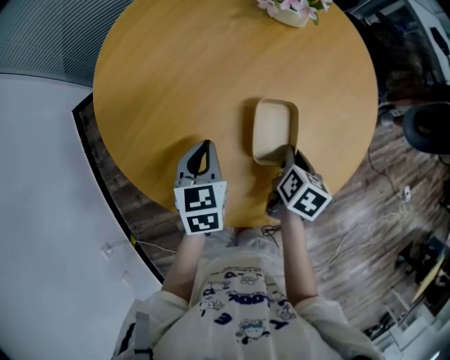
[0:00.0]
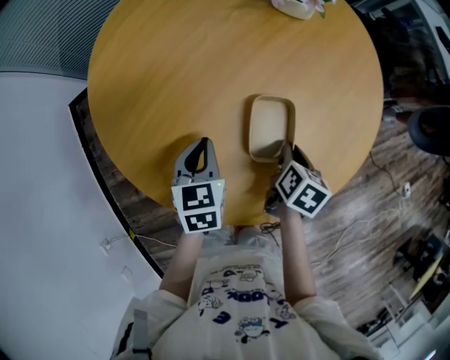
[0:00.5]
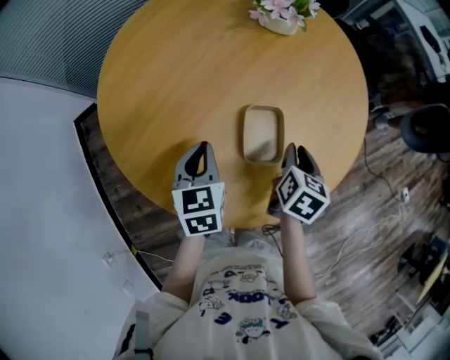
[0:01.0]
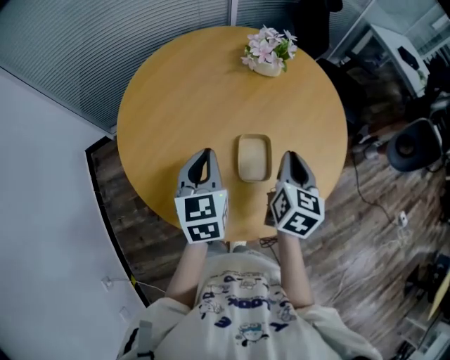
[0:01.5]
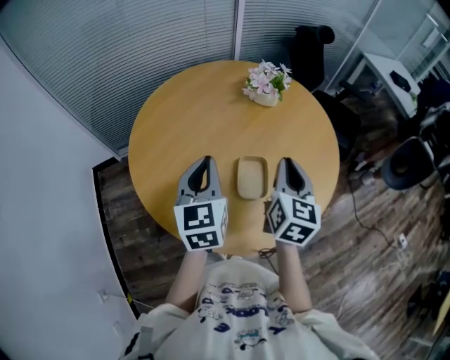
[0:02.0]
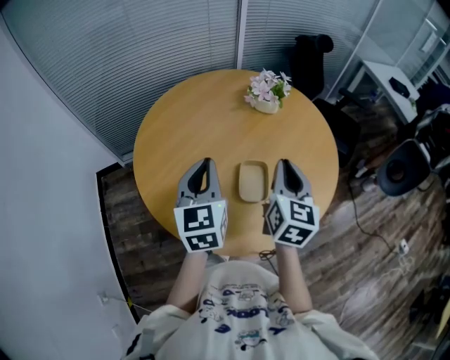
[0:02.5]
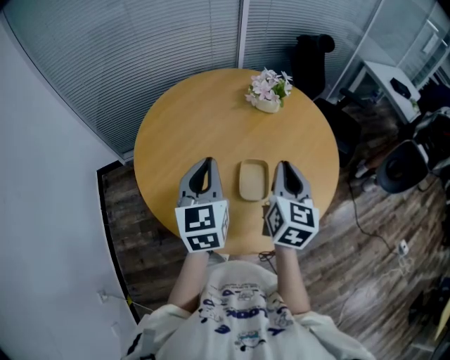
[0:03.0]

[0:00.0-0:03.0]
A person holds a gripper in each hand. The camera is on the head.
0:00.0 to 0:01.5: The grippers both shift upward by some 15 cm. The right gripper changes its angle by about 30 degrees.
0:01.5 to 0:03.0: Both grippers travel together upward, about 10 cm.

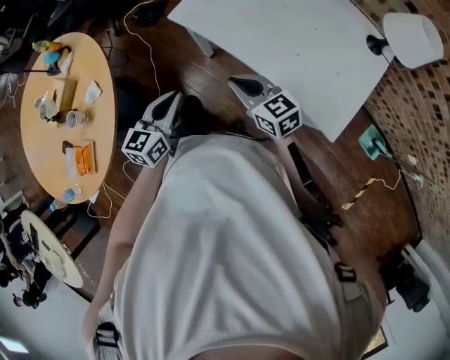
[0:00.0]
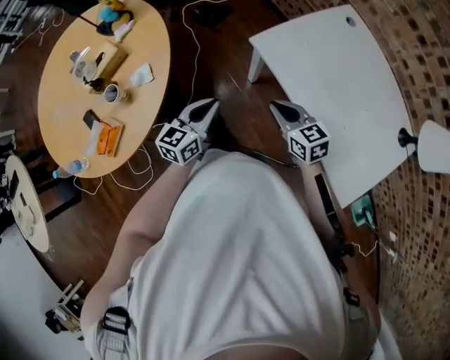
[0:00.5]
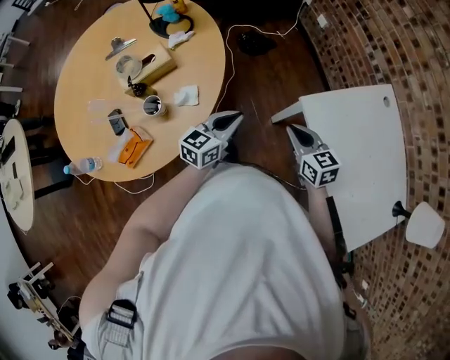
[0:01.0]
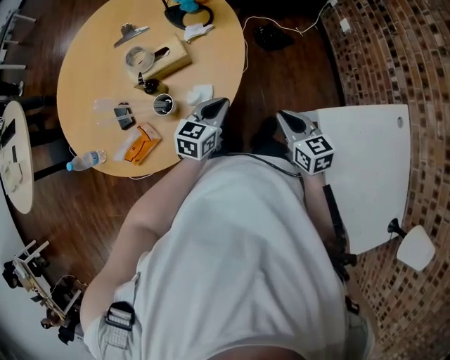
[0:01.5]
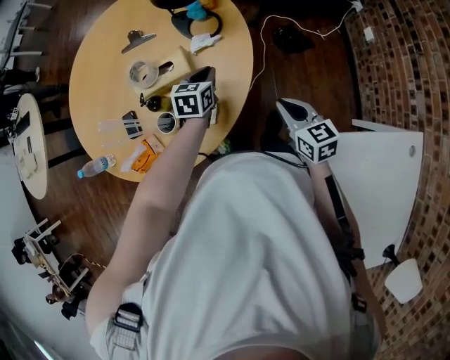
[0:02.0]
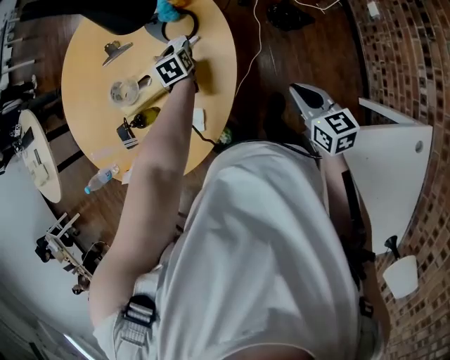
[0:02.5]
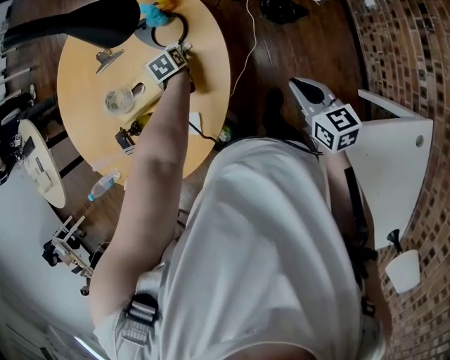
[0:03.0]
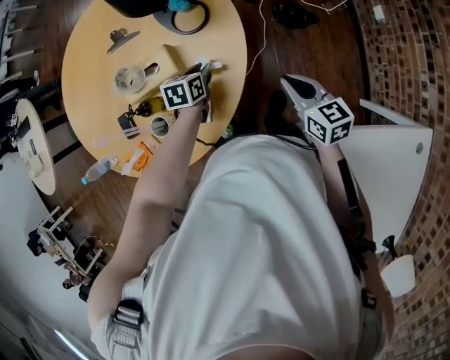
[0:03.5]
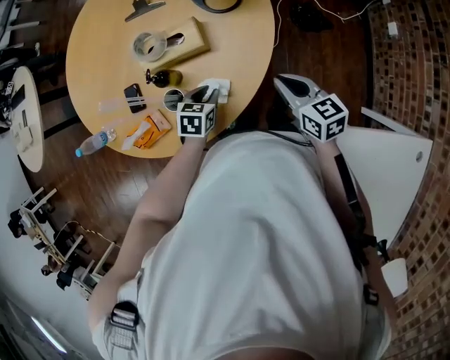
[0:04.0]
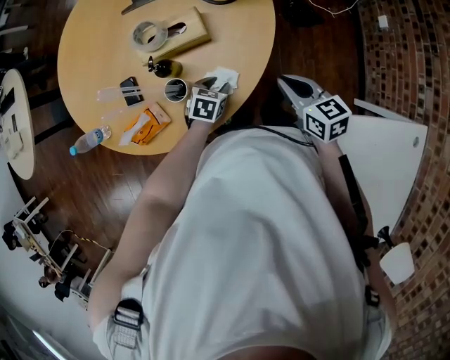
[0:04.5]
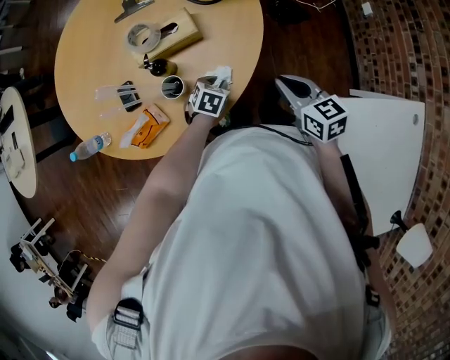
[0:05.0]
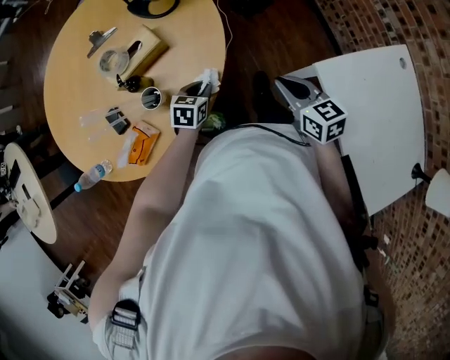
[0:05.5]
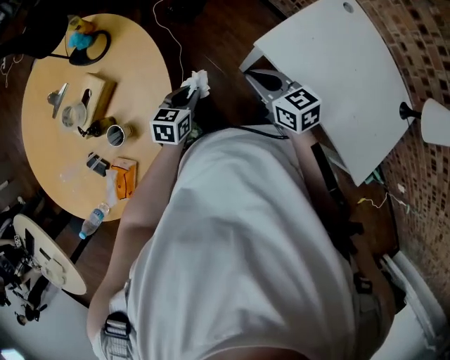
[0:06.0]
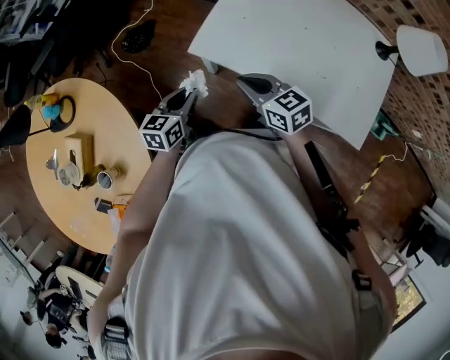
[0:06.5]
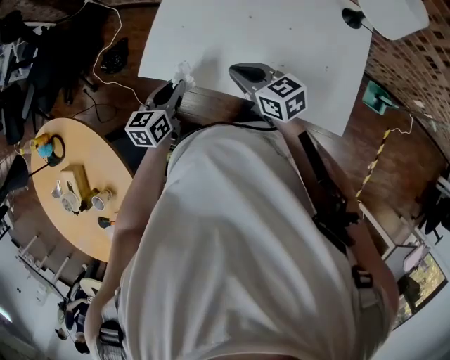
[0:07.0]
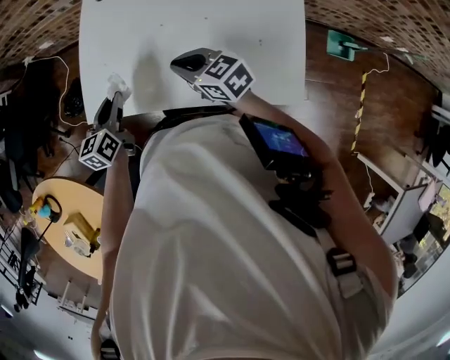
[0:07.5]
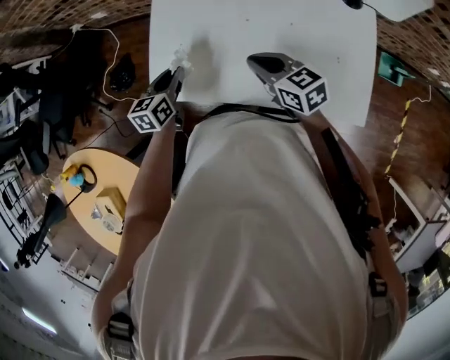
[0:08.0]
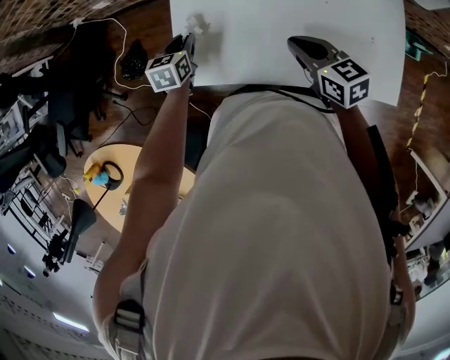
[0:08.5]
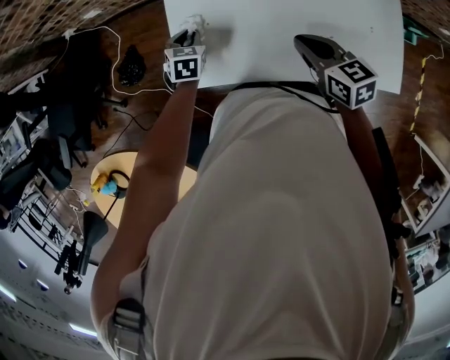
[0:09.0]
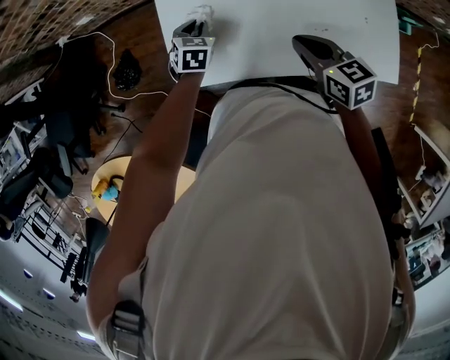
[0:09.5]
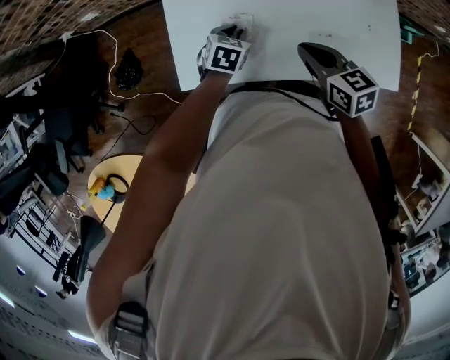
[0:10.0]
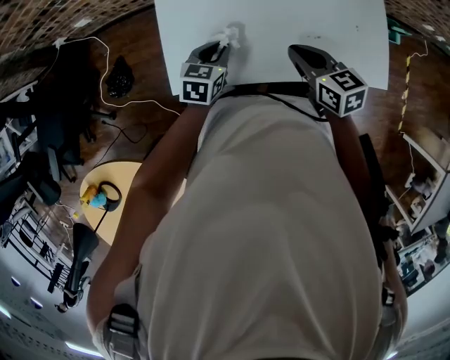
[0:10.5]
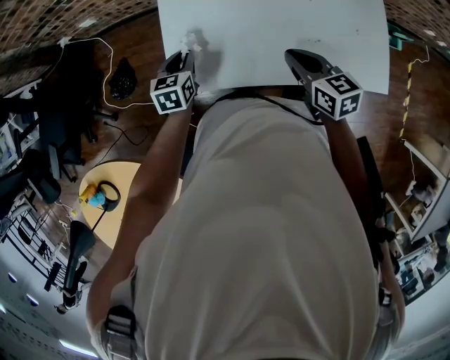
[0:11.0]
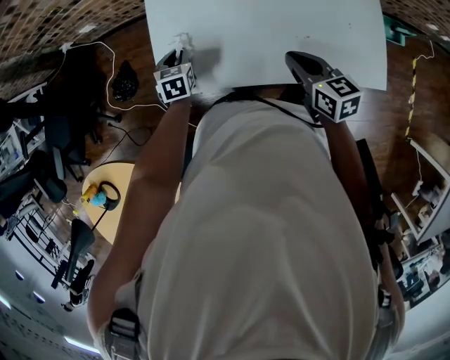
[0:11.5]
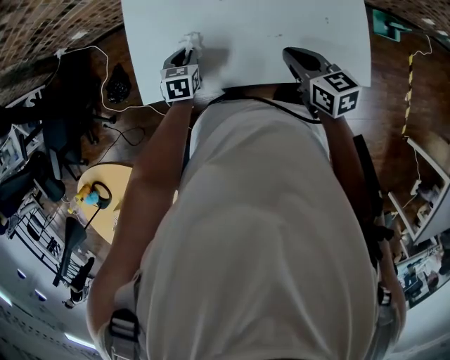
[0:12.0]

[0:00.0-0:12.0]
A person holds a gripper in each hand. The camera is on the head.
0:00.0 to 0:02.0: Both grippers are carried about 50 cm. The left gripper changes its angle by approximately 60 degrees. Meanwhile the right gripper swivels some 30 degrees.
0:02.0 to 0:04.0: The right gripper moves roughly 10 cm to the right and comes back. The left gripper travels backward, to the left and downward by approximately 15 cm, and opens, then closes once more.
0:04.0 to 0:06.0: The right gripper moves approximately 25 cm, and turns by about 40 degrees, while the left gripper reaches roughly 5 cm downward, then returns, and changes its angle by approximately 50 degrees.
0:06.0 to 0:08.0: The right gripper ends up approximately 40 cm from where it was, and swivels some 40 degrees, while the left gripper shifts by about 40 cm, and rotates some 30 degrees.
0:08.0 to 0:10.0: The left gripper moves downward and to the right, about 10 cm, and swivels approximately 40 degrees, while the right gripper rotates about 20 degrees.
0:10.0 to 0:12.0: The left gripper moves roughly 15 cm to the left and comes back, while the right gripper goes some 10 cm to the right.

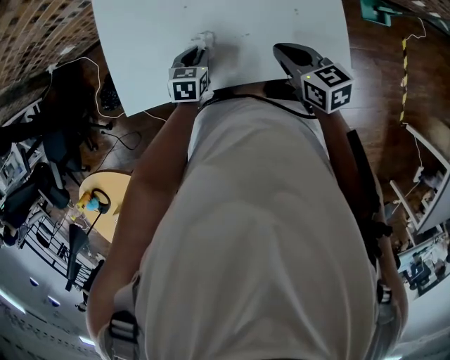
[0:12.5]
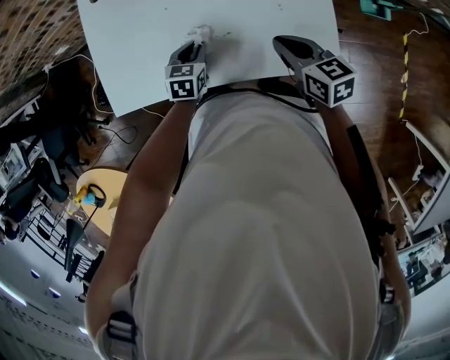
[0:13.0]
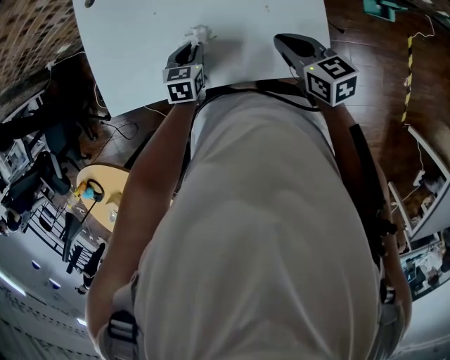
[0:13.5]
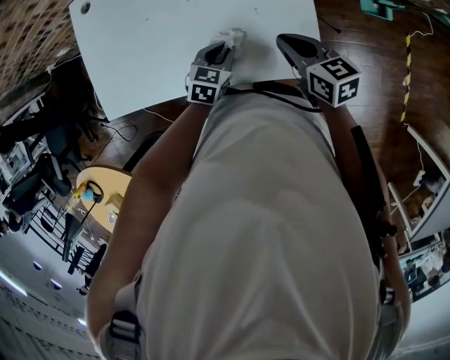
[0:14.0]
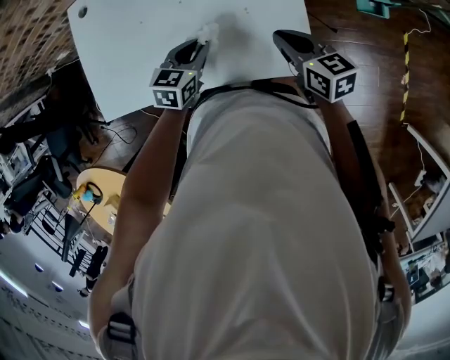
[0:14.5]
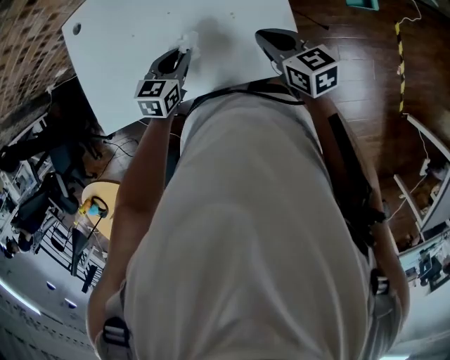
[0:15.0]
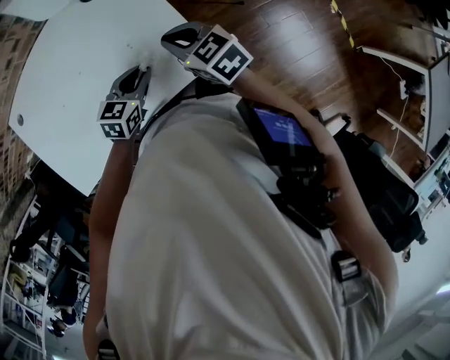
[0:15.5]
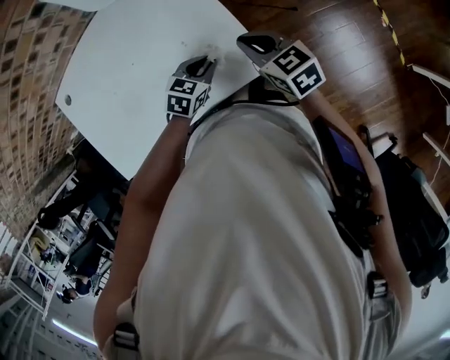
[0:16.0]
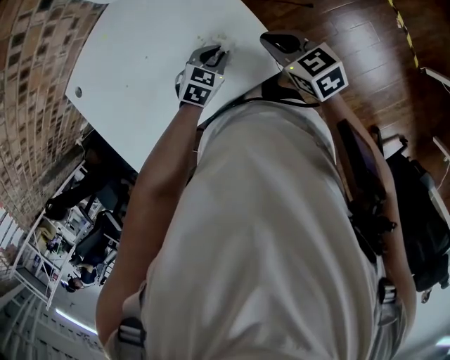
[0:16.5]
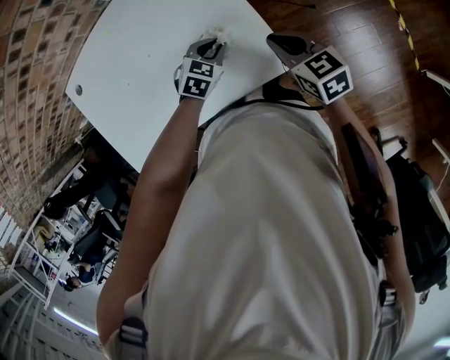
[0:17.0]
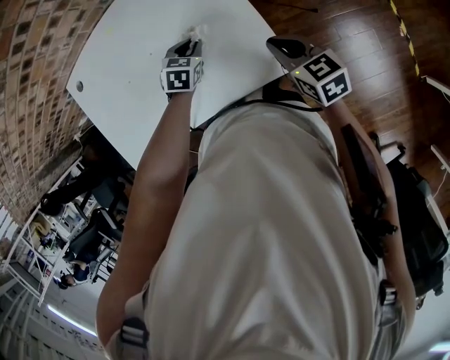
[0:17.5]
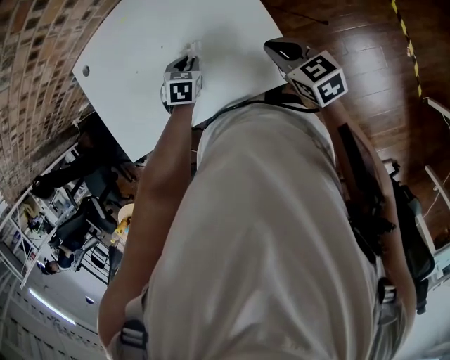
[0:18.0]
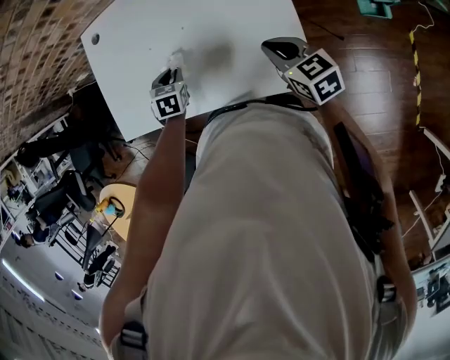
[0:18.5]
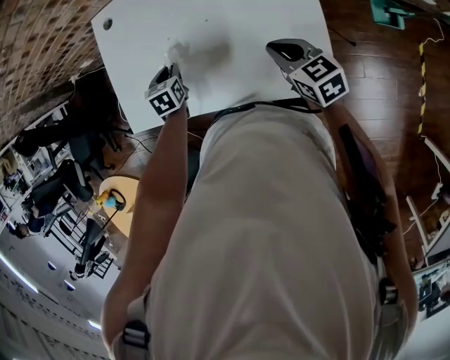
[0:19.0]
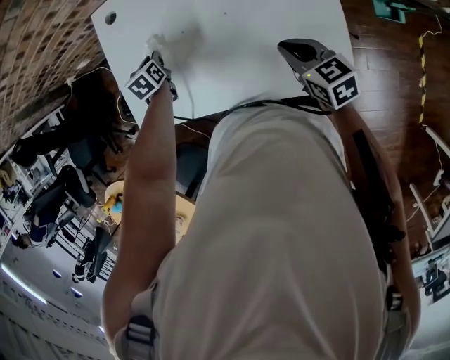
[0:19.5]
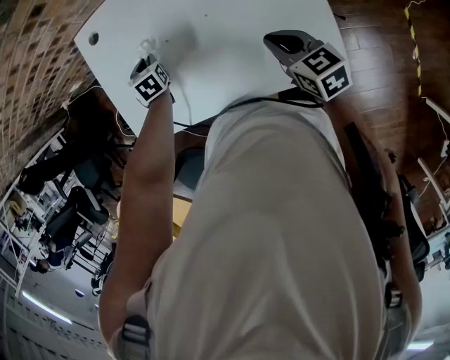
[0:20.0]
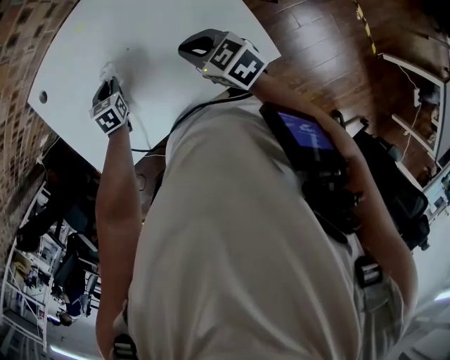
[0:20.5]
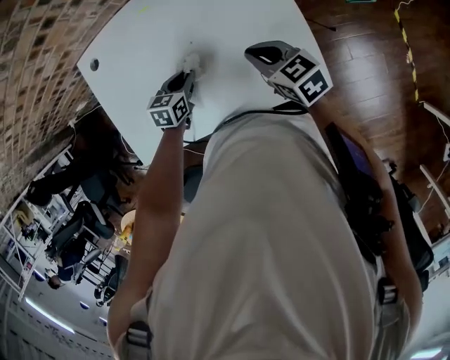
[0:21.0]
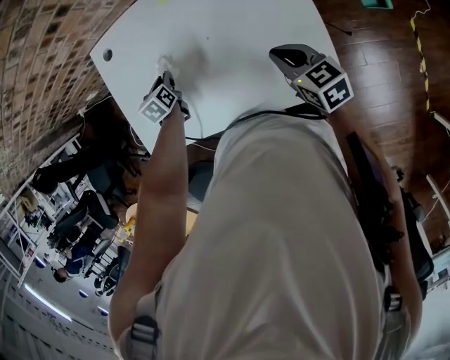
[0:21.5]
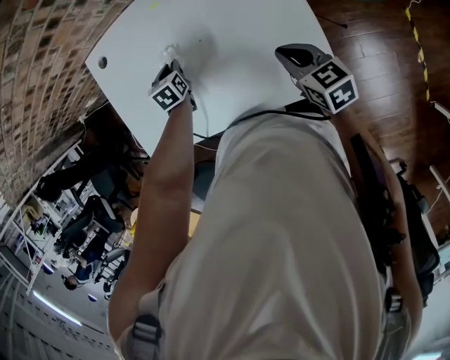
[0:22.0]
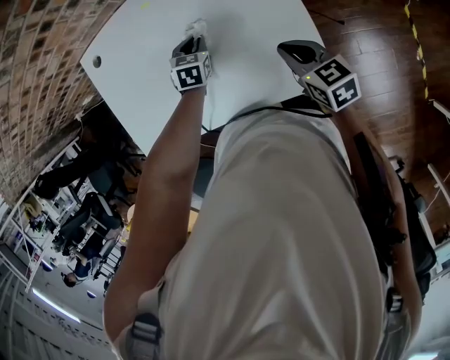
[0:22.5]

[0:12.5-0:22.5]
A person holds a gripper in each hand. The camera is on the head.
0:12.5 to 0:14.5: The two grippers go approximately 15 cm to the right.
0:14.5 to 0:16.5: The right gripper is displaced to the right by roughly 10 cm; the left gripper shifts approximately 15 cm to the right, and rotates approximately 40 degrees.
0:16.5 to 0:18.5: The right gripper shifts by roughly 10 cm. Meanwhile the left gripper moves roughly 30 cm, and swivels approximately 60 degrees.
0:18.5 to 0:20.5: The left gripper is displaced forward by about 10 cm. Meanwhile the right gripper moves to the left and forward, roughly 10 cm.
0:20.5 to 0:22.5: The right gripper moves to the right, some 10 cm. The left gripper goes left and right, approximately 20 cm each way, reversing 2 times.

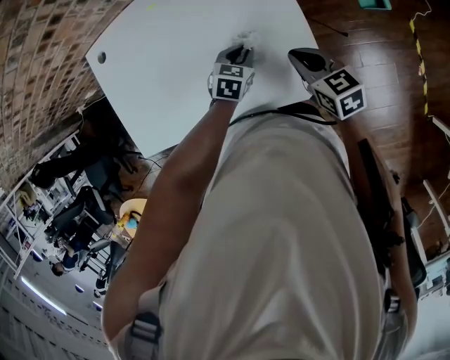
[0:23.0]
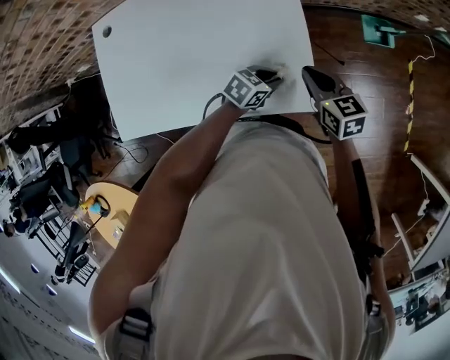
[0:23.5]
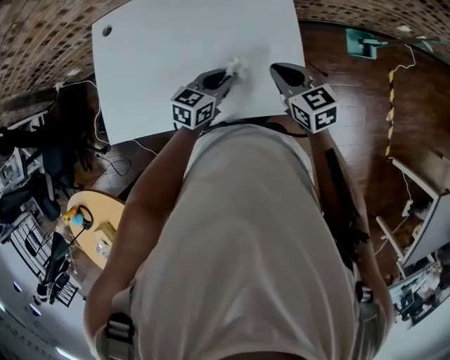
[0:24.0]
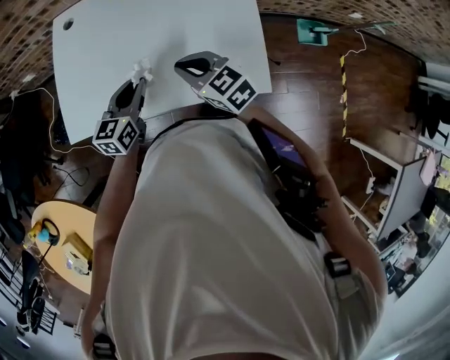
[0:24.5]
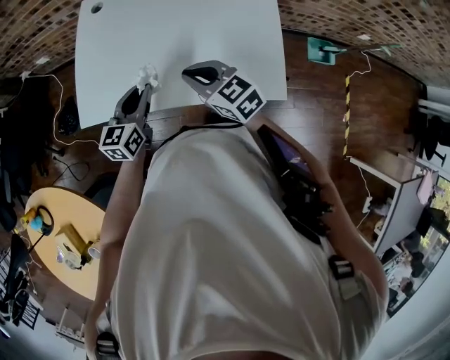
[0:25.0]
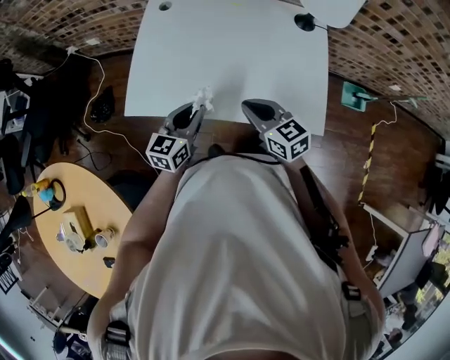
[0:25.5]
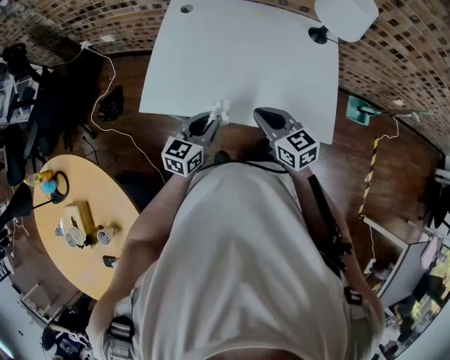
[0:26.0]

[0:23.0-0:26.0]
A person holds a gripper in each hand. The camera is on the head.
0:23.0 to 0:24.5: The right gripper moves approximately 20 cm, and rotates some 30 degrees, while the left gripper shifts by about 25 cm, and changes its angle by some 40 degrees.
0:24.5 to 0:26.0: The grippers both shift to the left and backward by approximately 15 cm.
